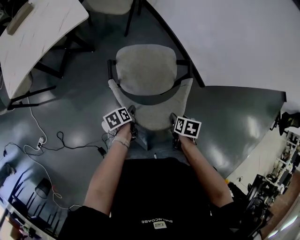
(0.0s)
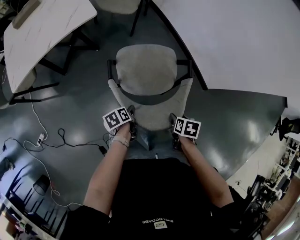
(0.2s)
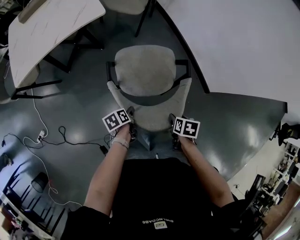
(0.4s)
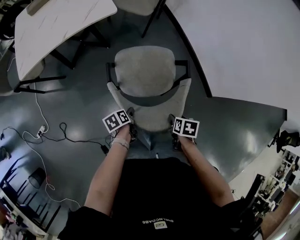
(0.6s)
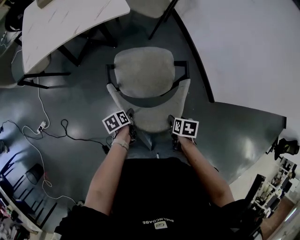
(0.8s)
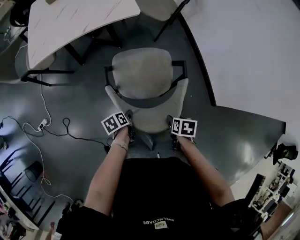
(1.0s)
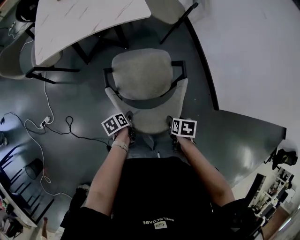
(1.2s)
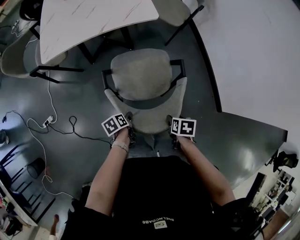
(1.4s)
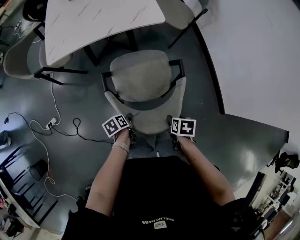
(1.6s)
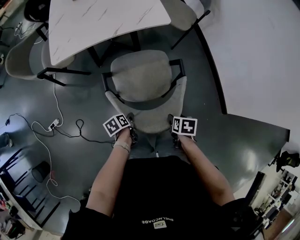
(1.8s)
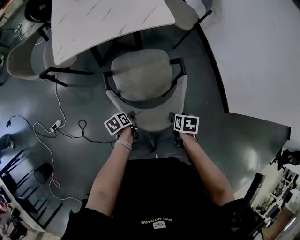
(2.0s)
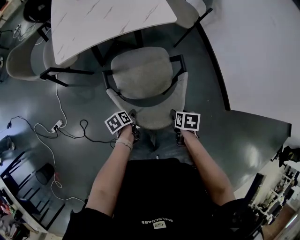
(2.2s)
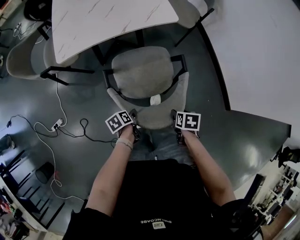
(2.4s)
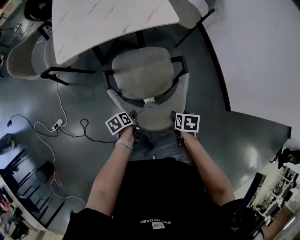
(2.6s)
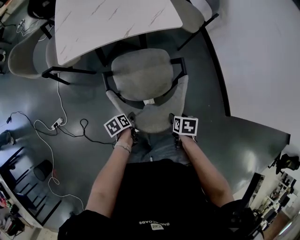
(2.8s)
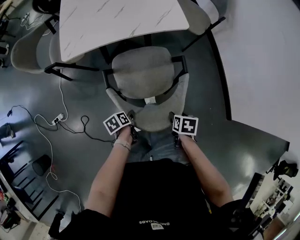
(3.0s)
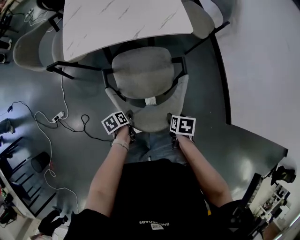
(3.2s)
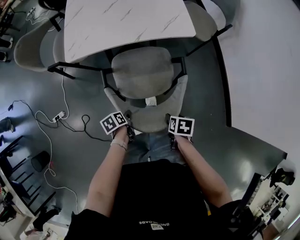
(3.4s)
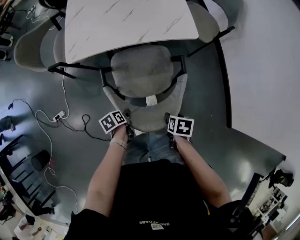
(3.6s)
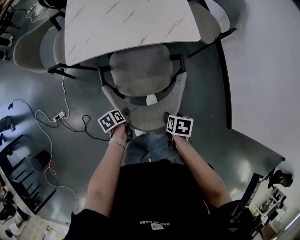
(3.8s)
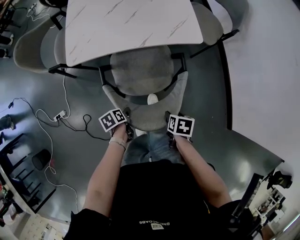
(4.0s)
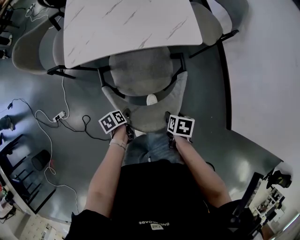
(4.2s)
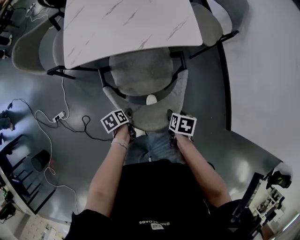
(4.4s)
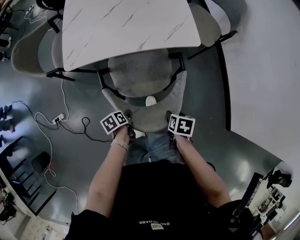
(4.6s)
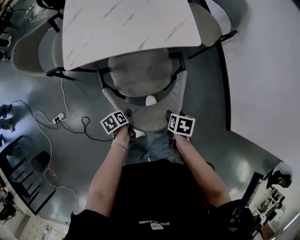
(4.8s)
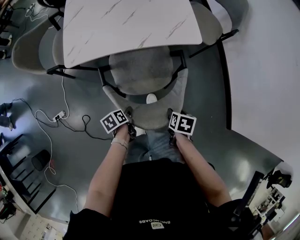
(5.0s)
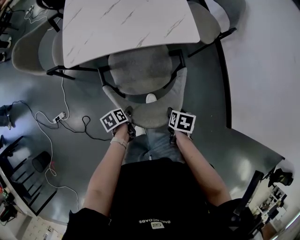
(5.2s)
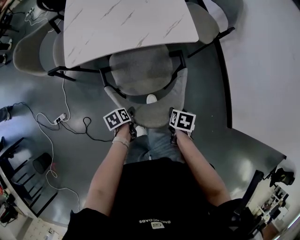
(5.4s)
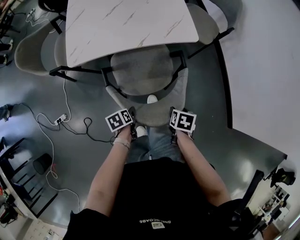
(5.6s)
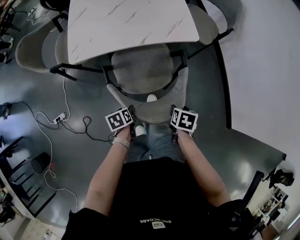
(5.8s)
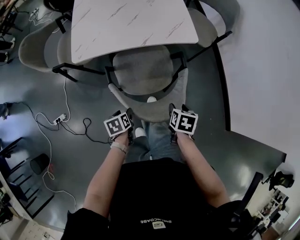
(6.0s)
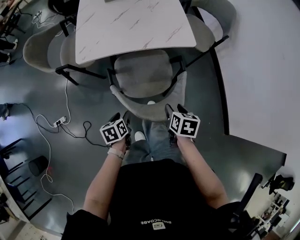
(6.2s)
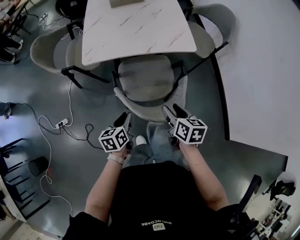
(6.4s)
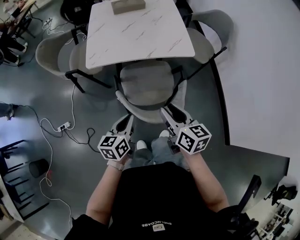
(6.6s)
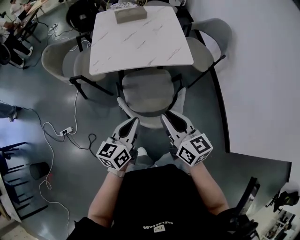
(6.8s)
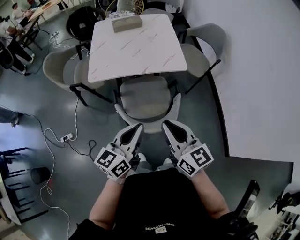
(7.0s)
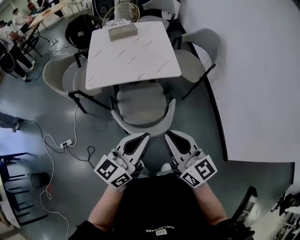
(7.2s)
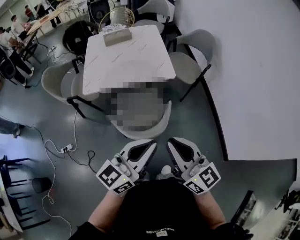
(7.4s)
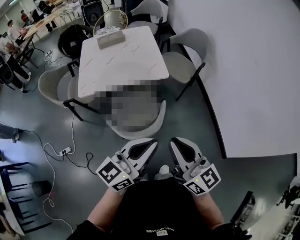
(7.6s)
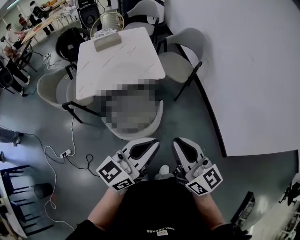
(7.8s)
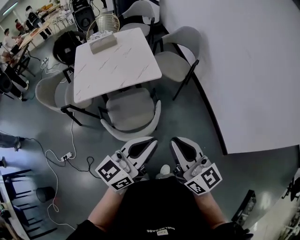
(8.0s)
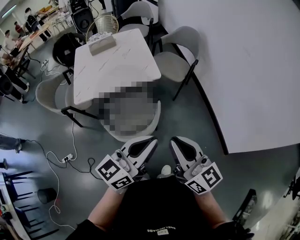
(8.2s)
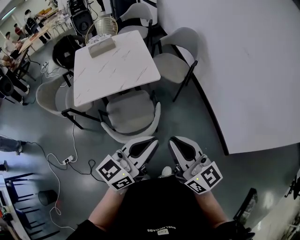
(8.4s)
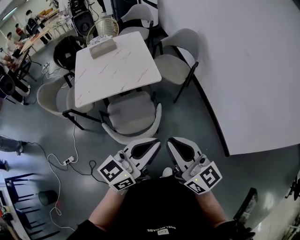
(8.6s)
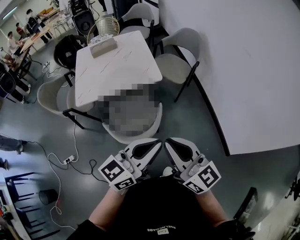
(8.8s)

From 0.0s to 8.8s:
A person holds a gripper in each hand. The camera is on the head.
From 0.0s to 1.4s: The right gripper changes place by approximately 25 cm, and rotates roughly 20 degrees; the left gripper changes place by about 25 cm.
From 1.4s to 3.0s: The grippers both shift to the left by some 15 cm.
From 3.0s to 4.4s: Both grippers travel together forward, about 10 cm.
From 4.4s to 5.8s: The grippers make only small movements.
From 5.8s to 7.4s: The right gripper heads upward, covering approximately 40 cm, points its fingers about 70 degrees further upward, and closes; the left gripper shifts approximately 50 cm upward and to the right, tips its fingers upward by approximately 70 degrees, and closes up.
From 7.4s to 8.8s: Both grippers travel together to the right, roughly 5 cm.

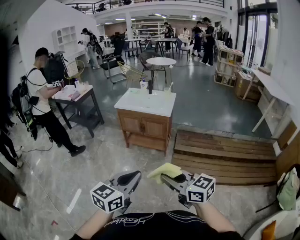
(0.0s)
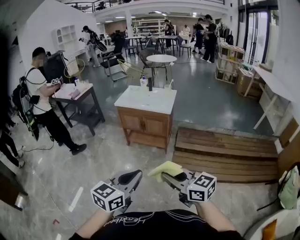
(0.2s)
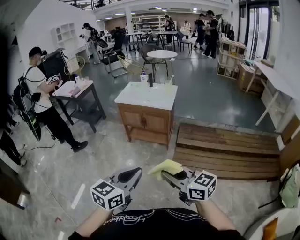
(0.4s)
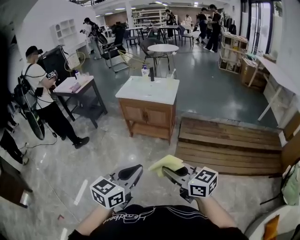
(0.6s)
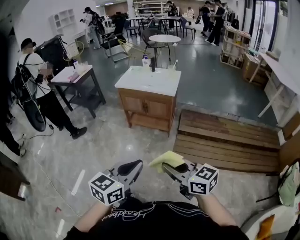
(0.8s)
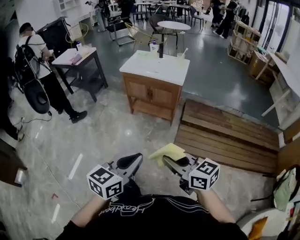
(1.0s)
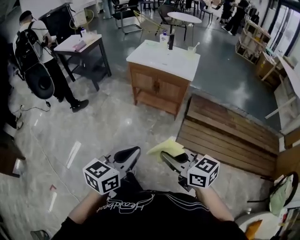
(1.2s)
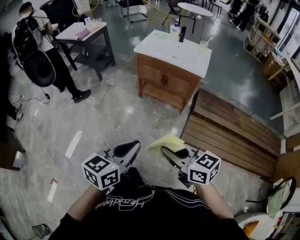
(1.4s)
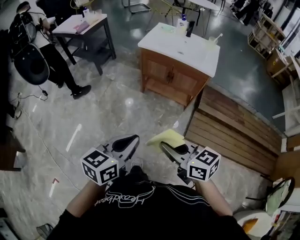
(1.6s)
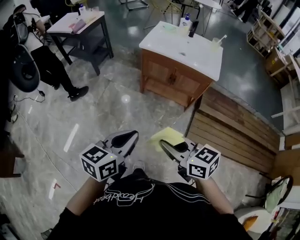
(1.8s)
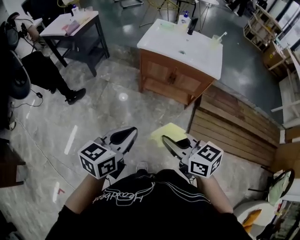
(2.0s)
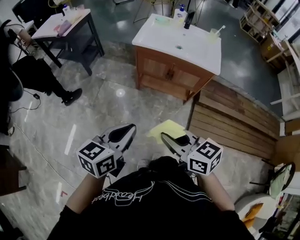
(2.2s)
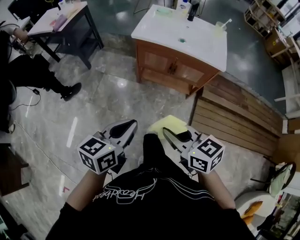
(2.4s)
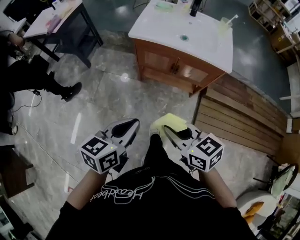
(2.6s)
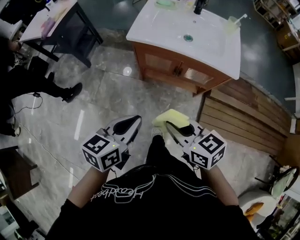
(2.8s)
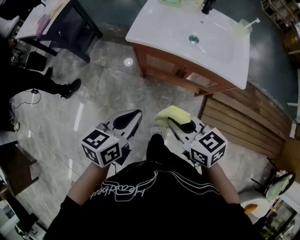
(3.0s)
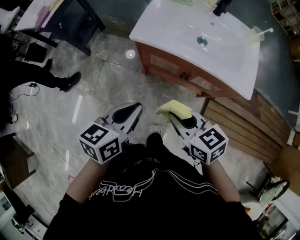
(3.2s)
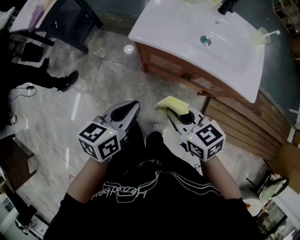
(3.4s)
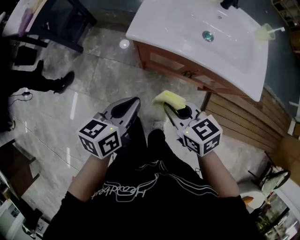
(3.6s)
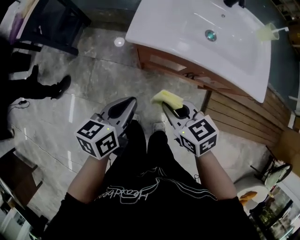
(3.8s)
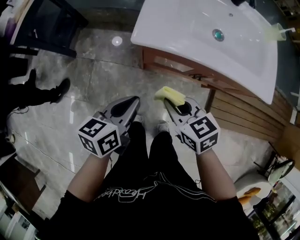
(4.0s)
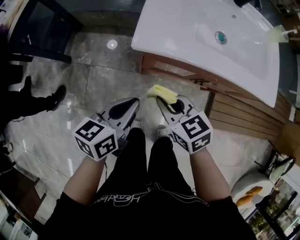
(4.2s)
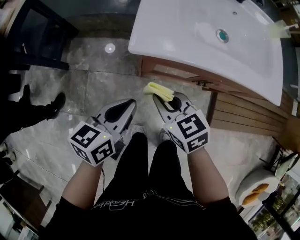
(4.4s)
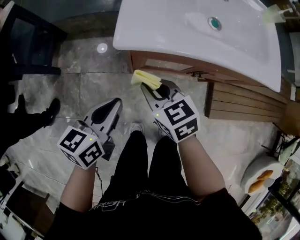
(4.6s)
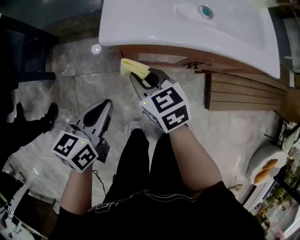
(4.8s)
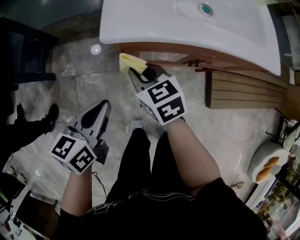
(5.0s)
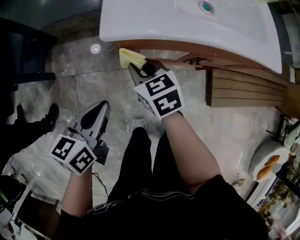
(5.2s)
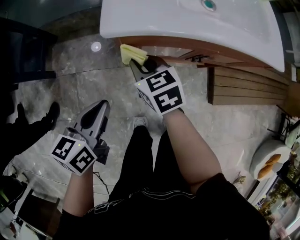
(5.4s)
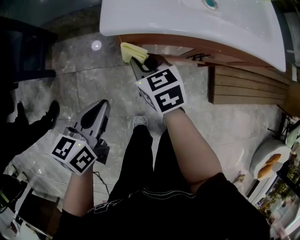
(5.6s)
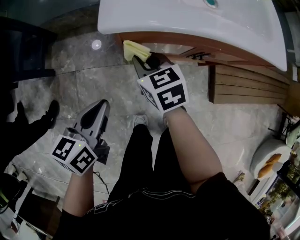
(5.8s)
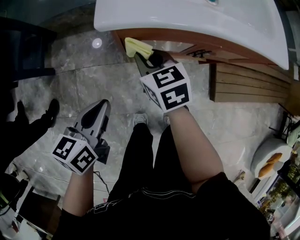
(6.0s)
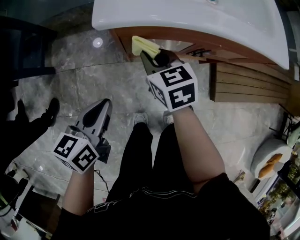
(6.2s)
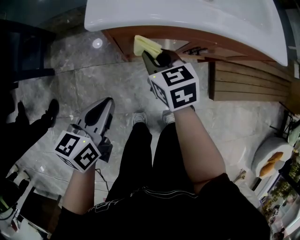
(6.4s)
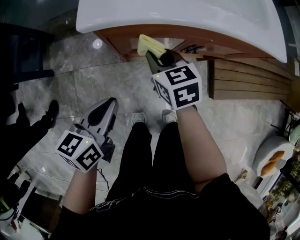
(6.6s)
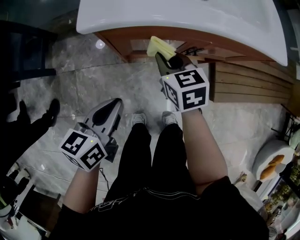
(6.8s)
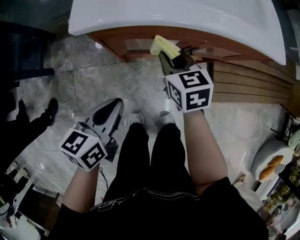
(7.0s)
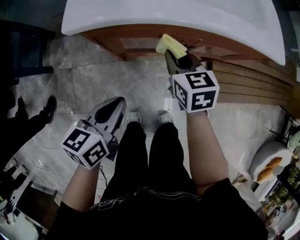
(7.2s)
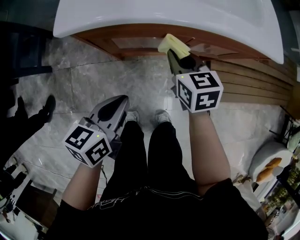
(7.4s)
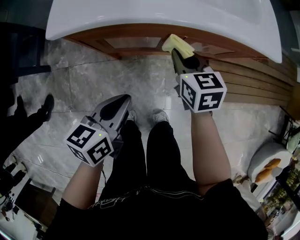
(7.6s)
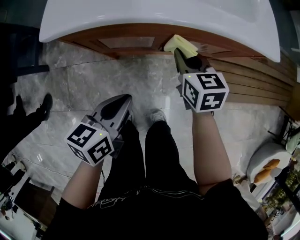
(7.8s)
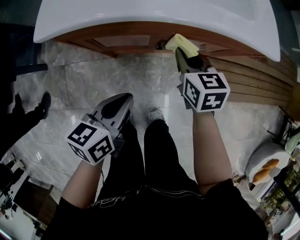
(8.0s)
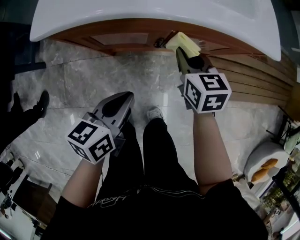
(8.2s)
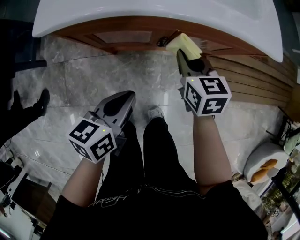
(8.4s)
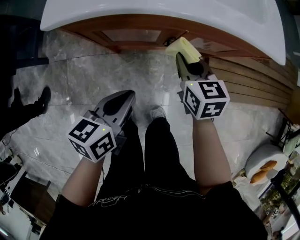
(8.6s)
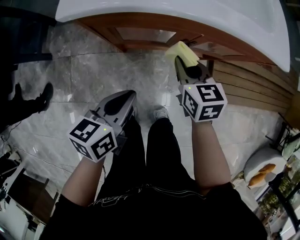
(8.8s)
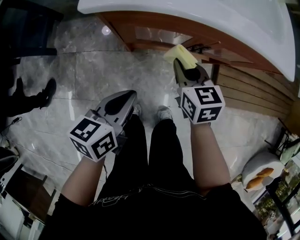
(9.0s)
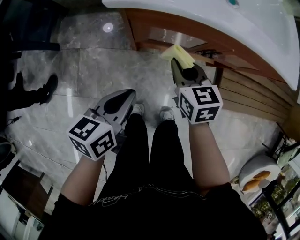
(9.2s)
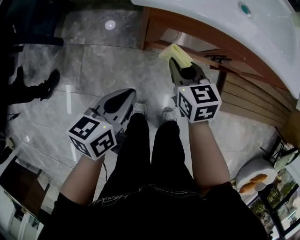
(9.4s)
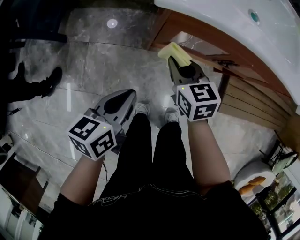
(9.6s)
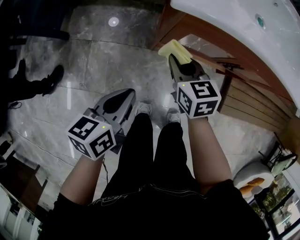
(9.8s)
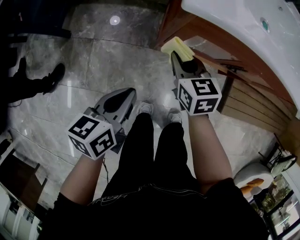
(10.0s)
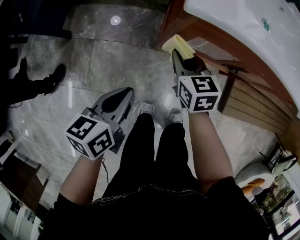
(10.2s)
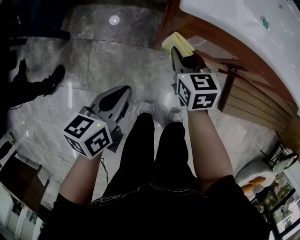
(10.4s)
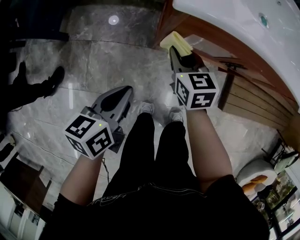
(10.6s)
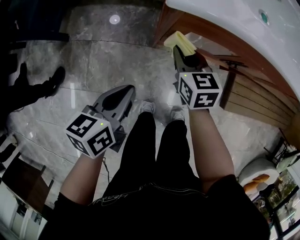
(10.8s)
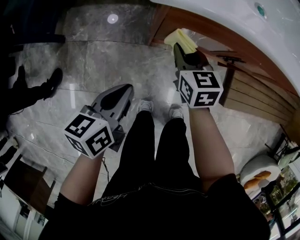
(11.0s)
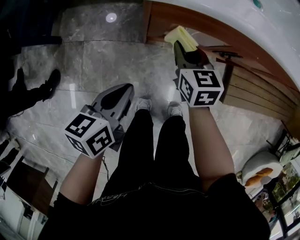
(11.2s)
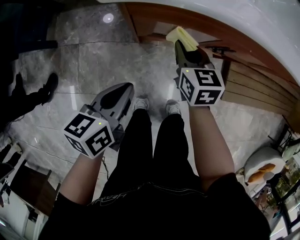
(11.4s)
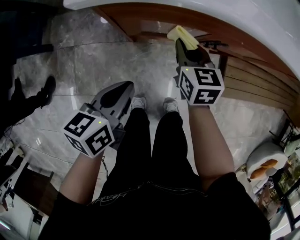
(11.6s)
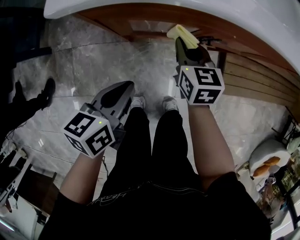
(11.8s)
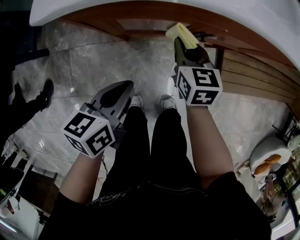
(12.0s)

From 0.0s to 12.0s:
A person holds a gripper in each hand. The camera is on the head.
From 0.0s to 1.6s: The two grippers go about 30 cm forward, to the left and downward.
From 1.6s to 3.0s: The grippers both shift forward by about 35 cm.
From 3.0s to 4.4s: Both grippers travel together forward, downward and to the left, roughly 30 cm.
From 4.4s to 6.0s: The right gripper shifts roughly 10 cm forward and downward. Meanwhile the left gripper ends up roughly 5 cm from where it was.
From 6.0s to 7.6s: The grippers both shift to the right by approximately 20 cm.
From 7.6s to 9.0s: The grippers both shift to the left by about 5 cm.
From 9.0s to 10.4s: Both grippers move to the left, some 15 cm.
From 10.4s to 12.0s: Both grippers move to the right, approximately 20 cm.

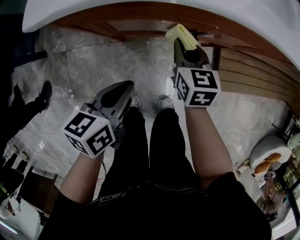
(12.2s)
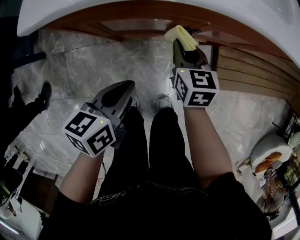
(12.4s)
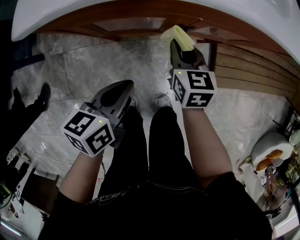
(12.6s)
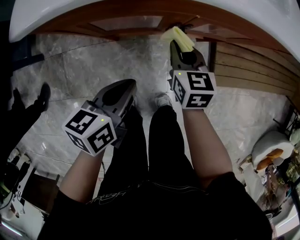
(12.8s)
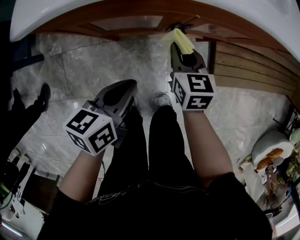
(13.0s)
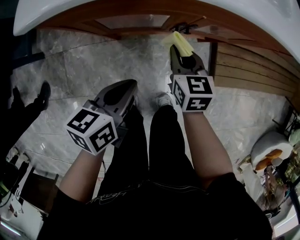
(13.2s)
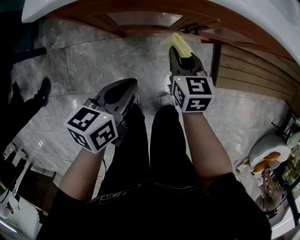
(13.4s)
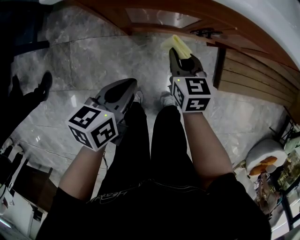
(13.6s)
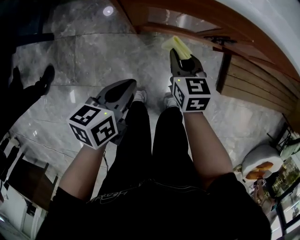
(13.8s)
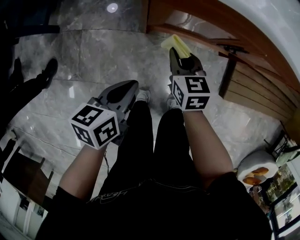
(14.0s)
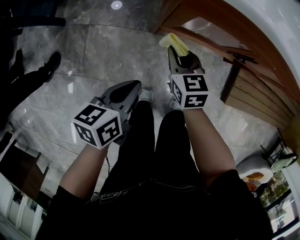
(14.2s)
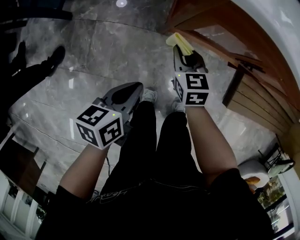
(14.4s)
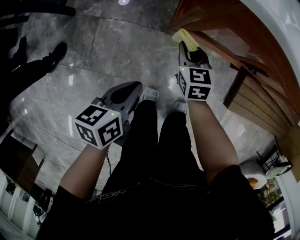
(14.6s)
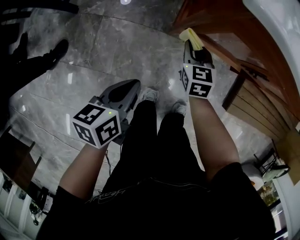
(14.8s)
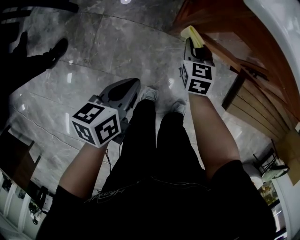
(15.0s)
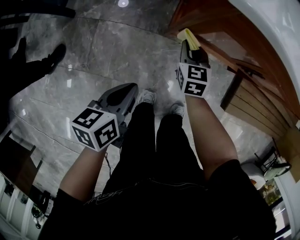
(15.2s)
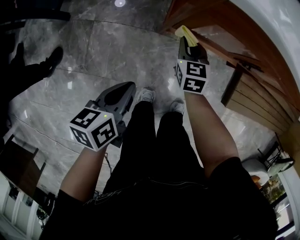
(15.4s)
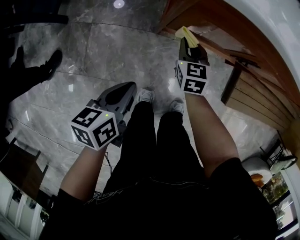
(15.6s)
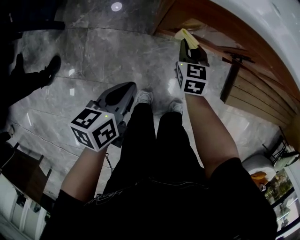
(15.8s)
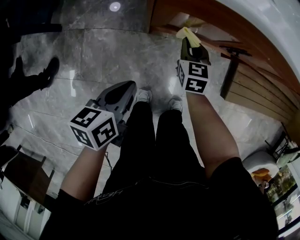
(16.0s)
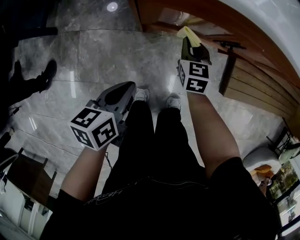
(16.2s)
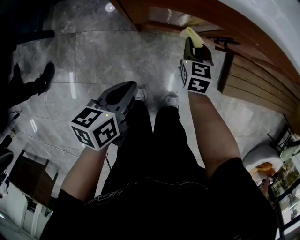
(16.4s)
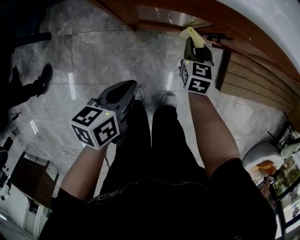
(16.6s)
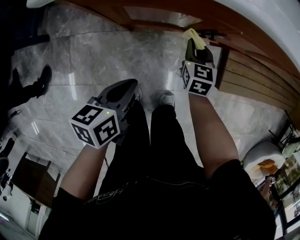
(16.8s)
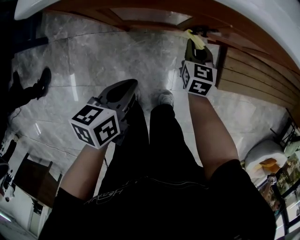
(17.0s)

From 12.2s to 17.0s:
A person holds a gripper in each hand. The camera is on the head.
From 12.2s to 13.8s: The left gripper moves to the left, roughly 5 cm. The right gripper is displaced to the left and backward by about 10 cm.
From 13.8s to 15.4s: The right gripper heads to the left and downward, covering approximately 10 cm, while the left gripper travels to the left by roughly 10 cm.
From 15.4s to 17.0s: The left gripper is displaced to the right and forward by about 20 cm. Meanwhile the right gripper is displaced to the right by some 25 cm.
